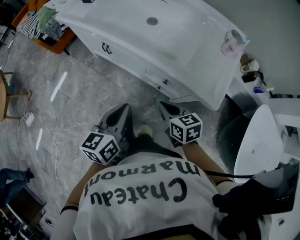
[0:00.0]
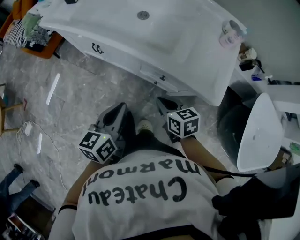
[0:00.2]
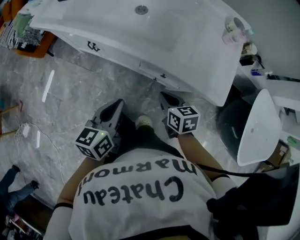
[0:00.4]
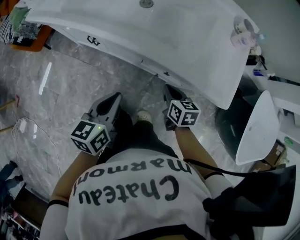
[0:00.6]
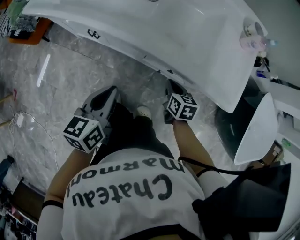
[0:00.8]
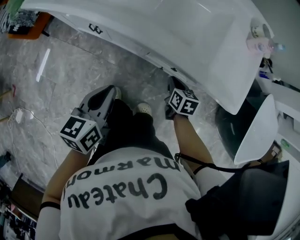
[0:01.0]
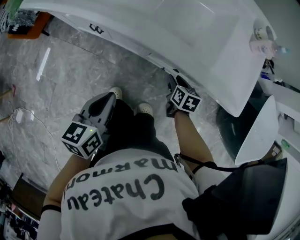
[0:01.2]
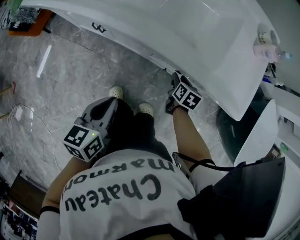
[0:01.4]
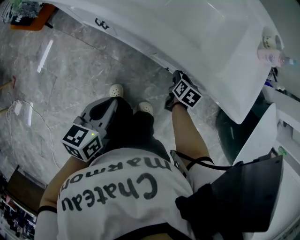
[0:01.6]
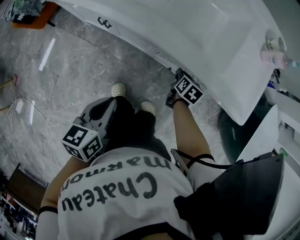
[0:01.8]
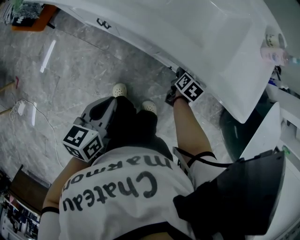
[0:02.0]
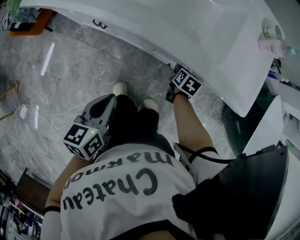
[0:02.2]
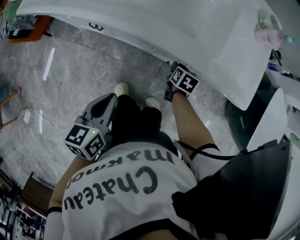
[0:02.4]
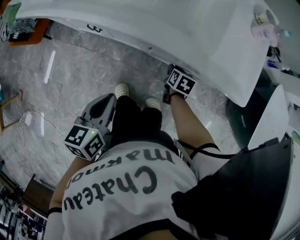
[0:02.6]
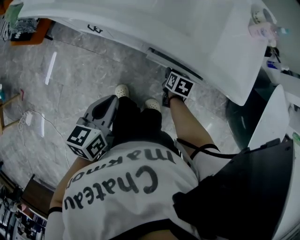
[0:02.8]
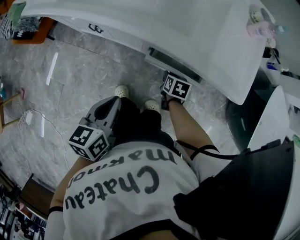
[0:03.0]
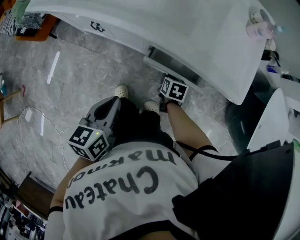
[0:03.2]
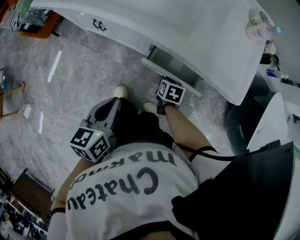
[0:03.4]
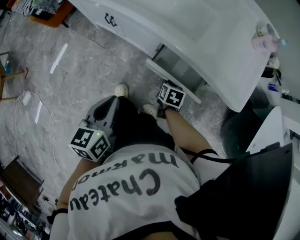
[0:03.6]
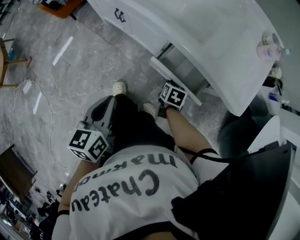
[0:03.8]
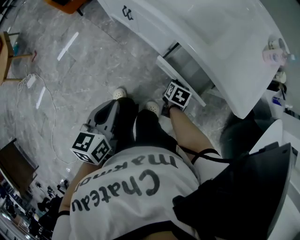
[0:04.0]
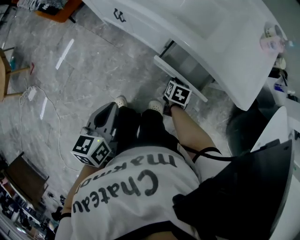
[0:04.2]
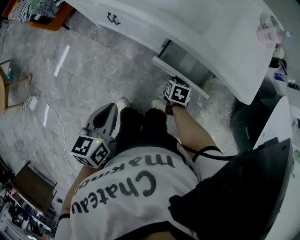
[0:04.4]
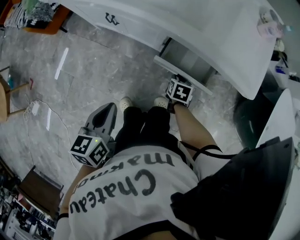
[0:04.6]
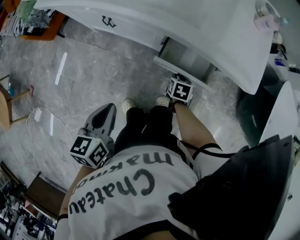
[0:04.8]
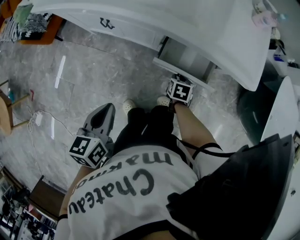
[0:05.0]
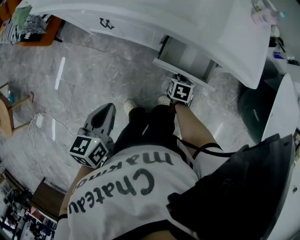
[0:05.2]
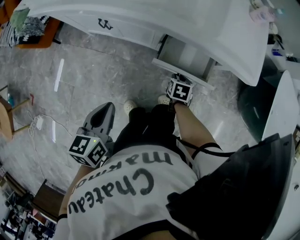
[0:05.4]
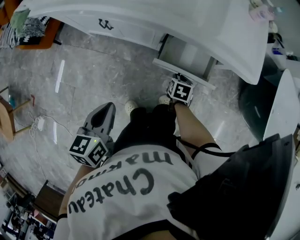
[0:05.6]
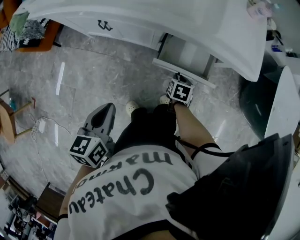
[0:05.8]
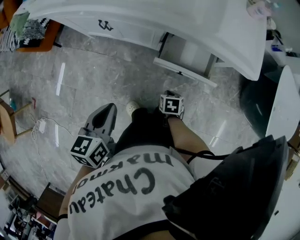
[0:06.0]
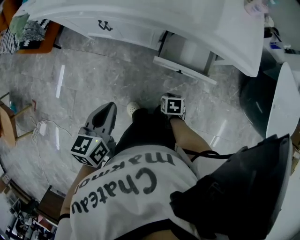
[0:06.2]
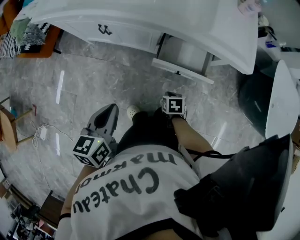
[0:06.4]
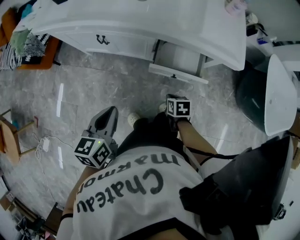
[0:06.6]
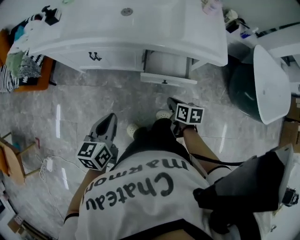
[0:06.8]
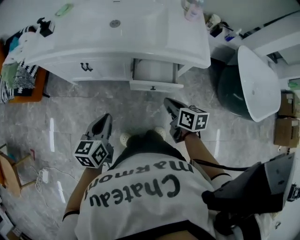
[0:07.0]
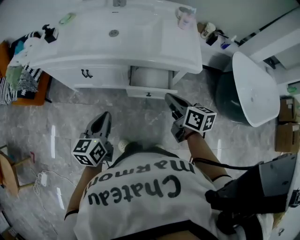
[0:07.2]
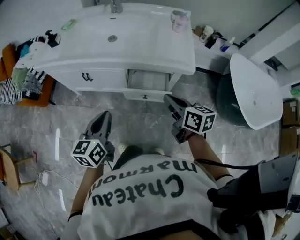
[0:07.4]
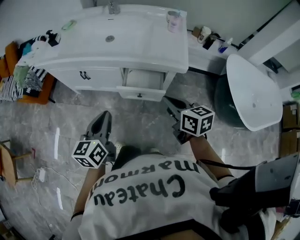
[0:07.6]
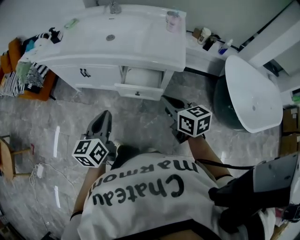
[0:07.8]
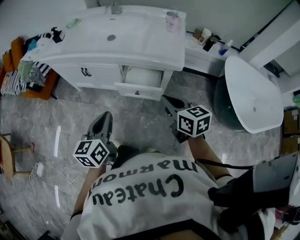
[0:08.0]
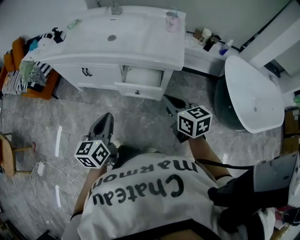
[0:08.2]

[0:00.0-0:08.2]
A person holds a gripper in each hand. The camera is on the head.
0:00.0 to 0:01.6: The right gripper goes some 20 cm downward, turns by about 50 degrees, and opens its fingers. Meanwhile the left gripper shifts approximately 10 cm downward, and rotates approximately 20 degrees.
0:01.6 to 0:03.2: The right gripper moves backward, approximately 5 cm. Meanwhile the left gripper ends up approximately 5 cm from where it was.
0:03.2 to 0:05.0: The left gripper goes approximately 10 cm to the left and backward.
0:05.0 to 0:06.6: The right gripper shifts about 10 cm backward, and closes up.
0:06.6 to 0:08.2: The left gripper shifts roughly 20 cm to the right, upward and backward; the right gripper moves upward and to the right, some 35 cm, and tilts its fingers about 40 degrees upward.

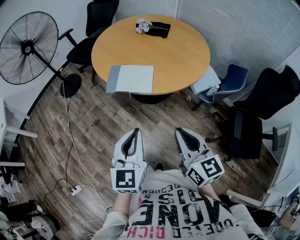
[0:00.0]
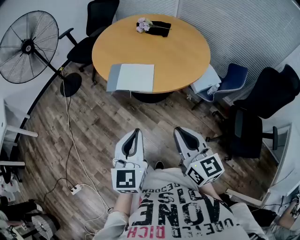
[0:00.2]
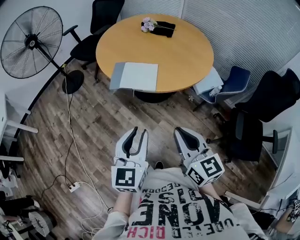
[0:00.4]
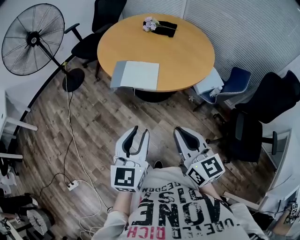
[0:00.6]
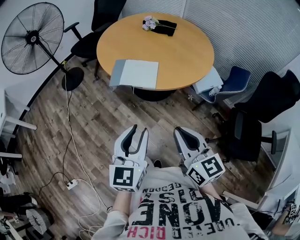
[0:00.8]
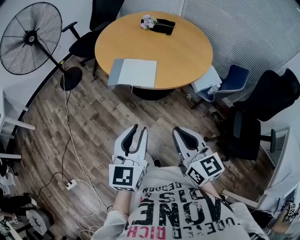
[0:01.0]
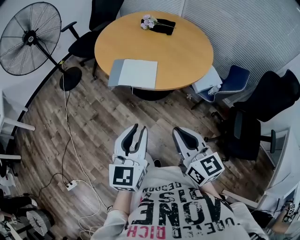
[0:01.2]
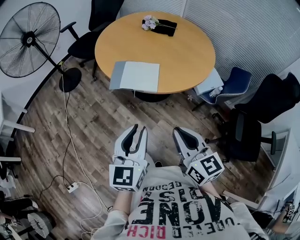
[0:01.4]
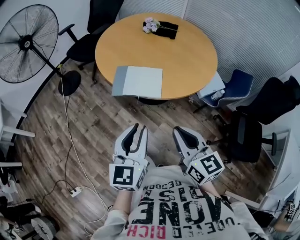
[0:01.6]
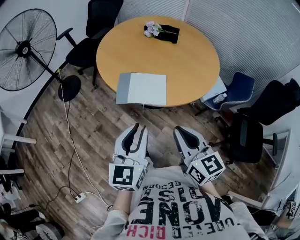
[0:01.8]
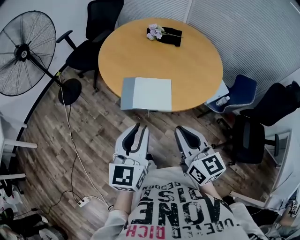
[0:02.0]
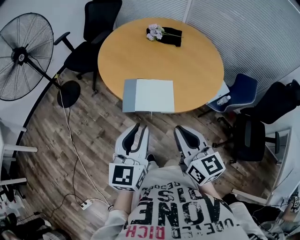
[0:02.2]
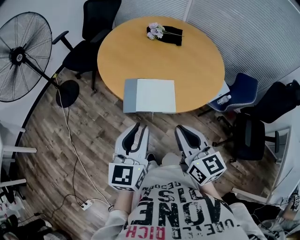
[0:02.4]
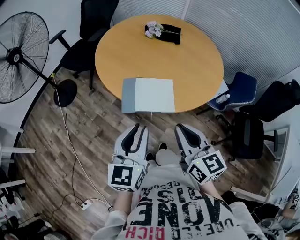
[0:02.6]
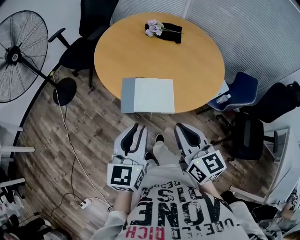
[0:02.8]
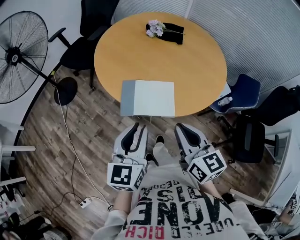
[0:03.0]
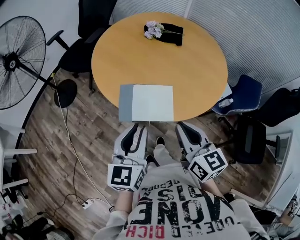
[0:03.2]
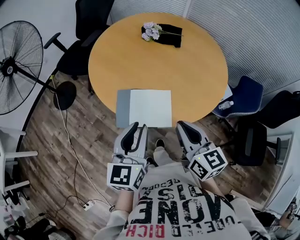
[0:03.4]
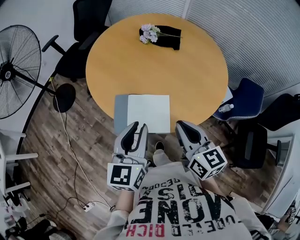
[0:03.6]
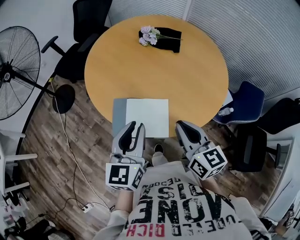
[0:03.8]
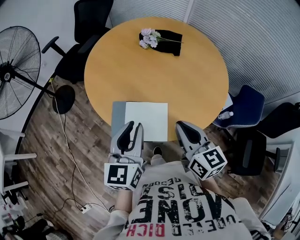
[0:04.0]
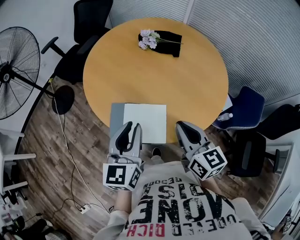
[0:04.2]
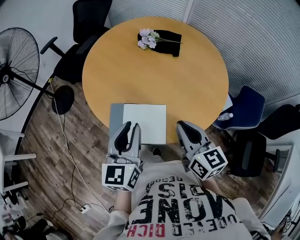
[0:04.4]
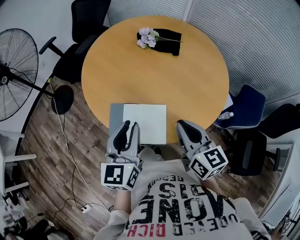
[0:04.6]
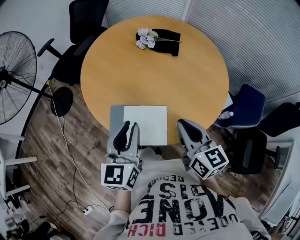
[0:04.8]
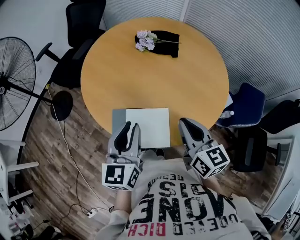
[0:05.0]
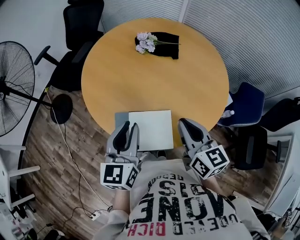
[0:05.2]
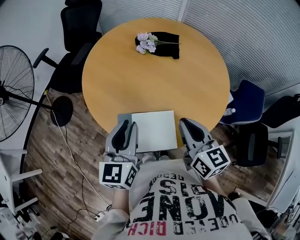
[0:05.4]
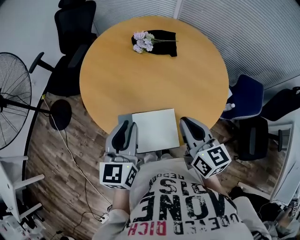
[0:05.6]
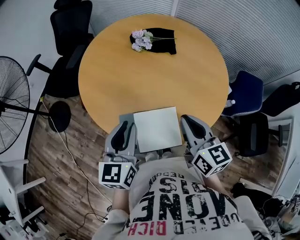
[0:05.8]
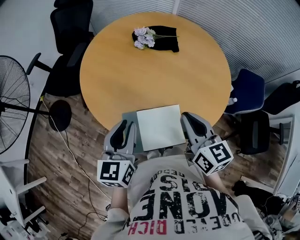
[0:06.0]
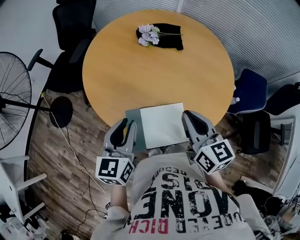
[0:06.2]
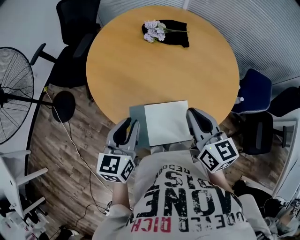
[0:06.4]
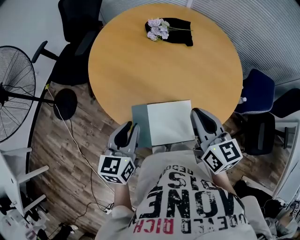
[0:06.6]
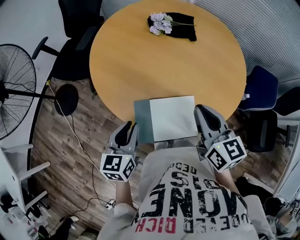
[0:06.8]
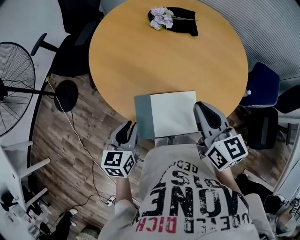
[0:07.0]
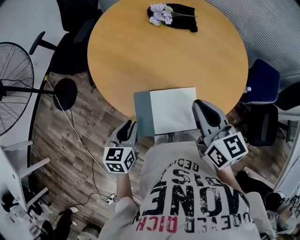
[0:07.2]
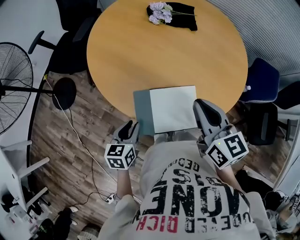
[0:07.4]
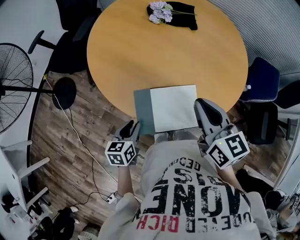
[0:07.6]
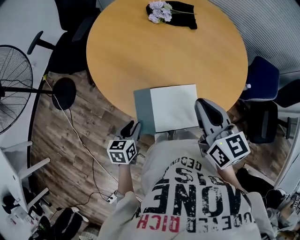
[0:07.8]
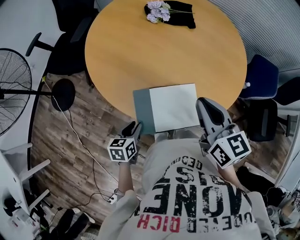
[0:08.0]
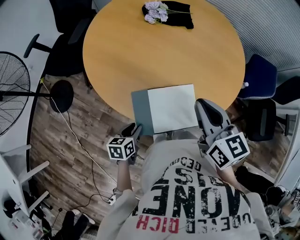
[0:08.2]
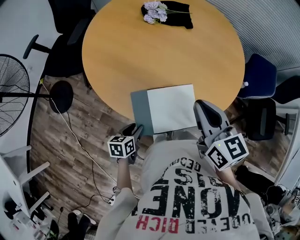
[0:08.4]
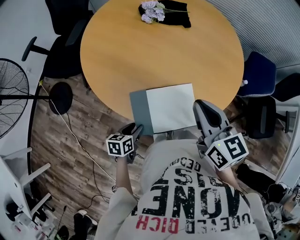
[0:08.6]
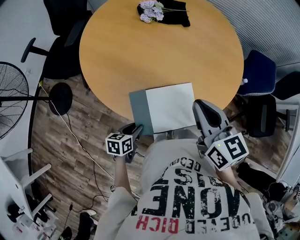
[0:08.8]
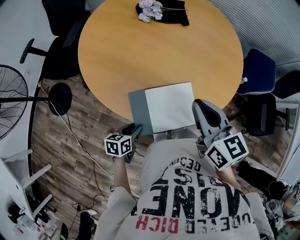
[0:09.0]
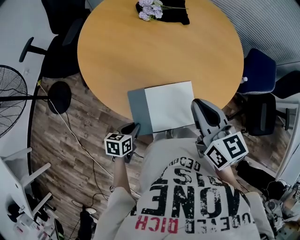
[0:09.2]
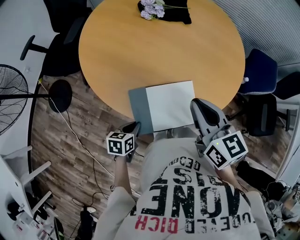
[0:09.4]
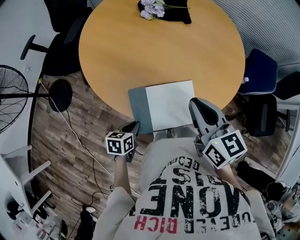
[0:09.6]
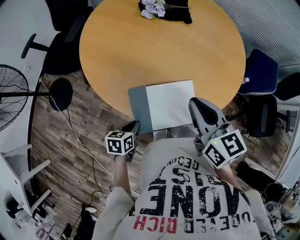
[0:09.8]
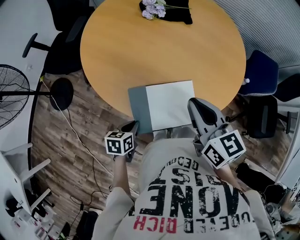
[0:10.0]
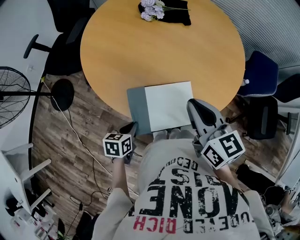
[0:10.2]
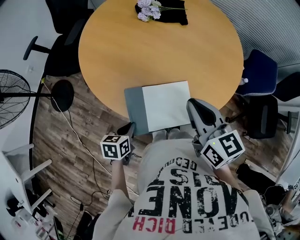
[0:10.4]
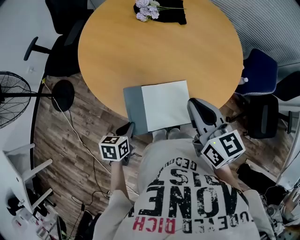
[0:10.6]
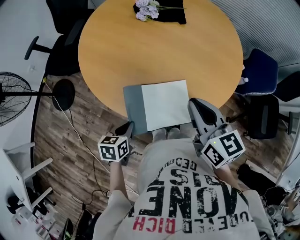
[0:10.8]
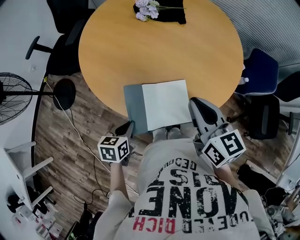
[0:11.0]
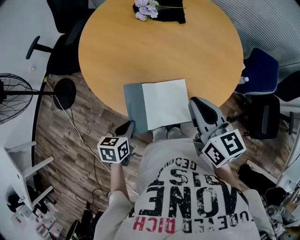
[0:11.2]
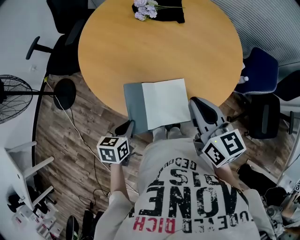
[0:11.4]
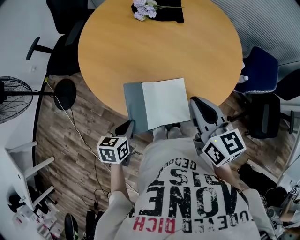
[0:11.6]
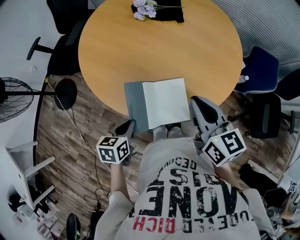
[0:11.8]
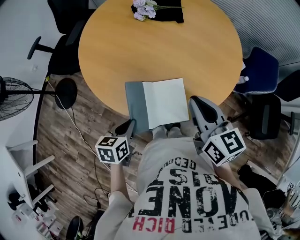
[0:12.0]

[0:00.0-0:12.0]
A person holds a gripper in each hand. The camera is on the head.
0:00.0 to 0:01.6: The right gripper is displaced forward and to the left by roughly 10 cm. The left gripper shifts approximately 5 cm forward.
0:01.6 to 0:03.0: The grippers both shift forward and to the left by approximately 15 cm.
0:03.0 to 0:04.4: The left gripper heads forward, covering about 15 cm; the right gripper shifts some 20 cm forward and to the right.
0:04.4 to 0:06.0: The two grippers go about 10 cm to the left and forward.
0:06.0 to 0:07.6: The left gripper travels downward by some 20 cm, and changes its angle by approximately 30 degrees.
0:07.6 to 0:09.0: The left gripper travels downward by some 5 cm, and turns by roughly 20 degrees.
0:09.0 to 0:10.4: The left gripper goes approximately 5 cm upward, and closes its fingers.
0:10.4 to 0:12.0: The left gripper heads upward, covering about 5 cm.

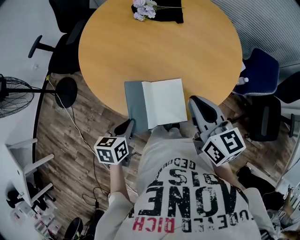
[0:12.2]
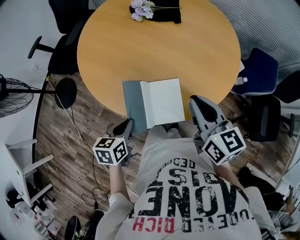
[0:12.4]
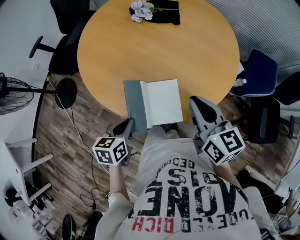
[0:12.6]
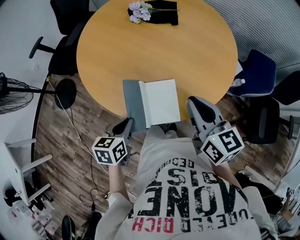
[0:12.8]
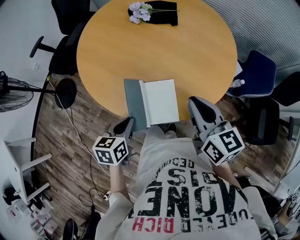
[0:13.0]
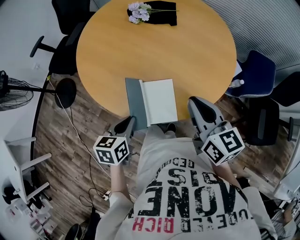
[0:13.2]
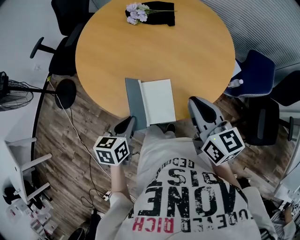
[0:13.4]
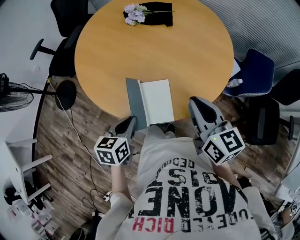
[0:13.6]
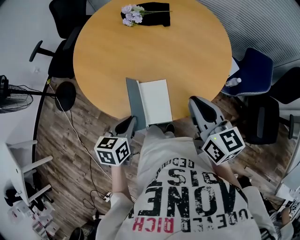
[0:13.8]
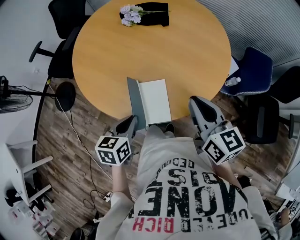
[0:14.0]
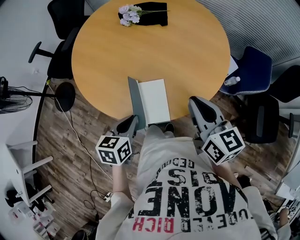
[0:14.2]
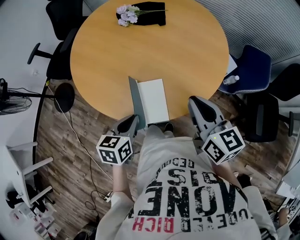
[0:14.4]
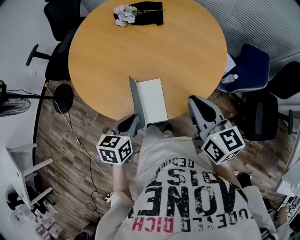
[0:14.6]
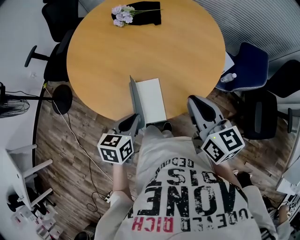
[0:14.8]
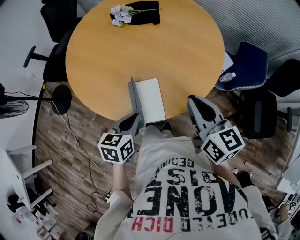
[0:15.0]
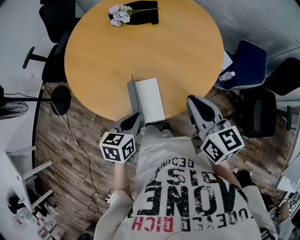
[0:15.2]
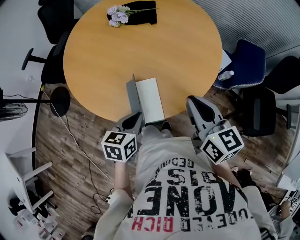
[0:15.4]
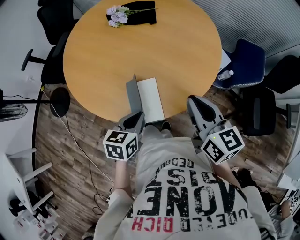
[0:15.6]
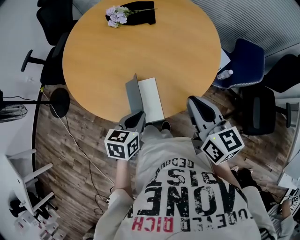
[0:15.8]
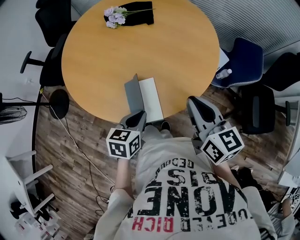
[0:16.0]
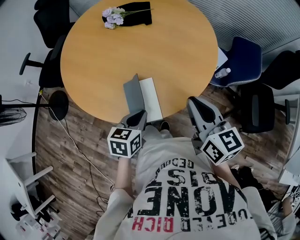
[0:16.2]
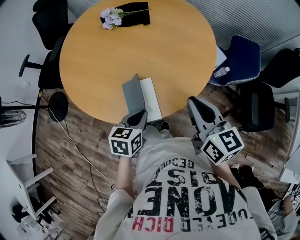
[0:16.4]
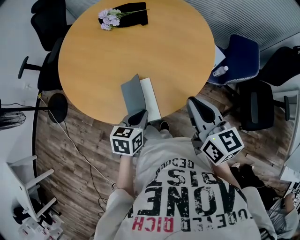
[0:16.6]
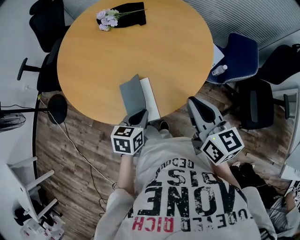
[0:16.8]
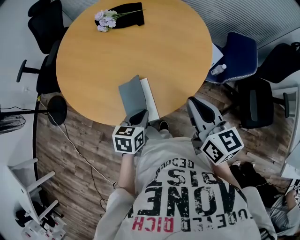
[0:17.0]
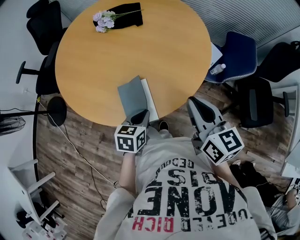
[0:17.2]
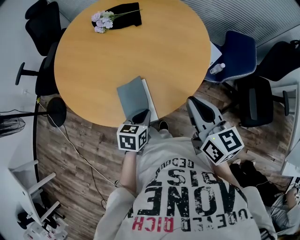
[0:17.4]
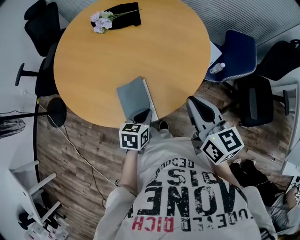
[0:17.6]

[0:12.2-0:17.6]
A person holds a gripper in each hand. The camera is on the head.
0:12.2 to 0:13.6: Both grippers travel together to the right, roughly 5 cm.
0:13.6 to 0:15.0: The left gripper travels to the right by approximately 5 cm.
0:15.0 to 0:16.2: The grippers make only small movements.
0:16.2 to 0:17.6: The left gripper shifts some 5 cm downward.
